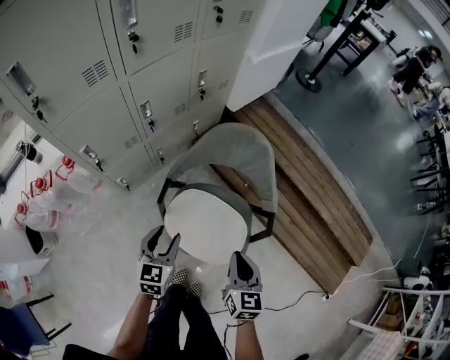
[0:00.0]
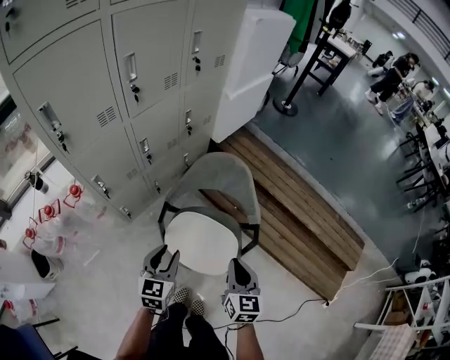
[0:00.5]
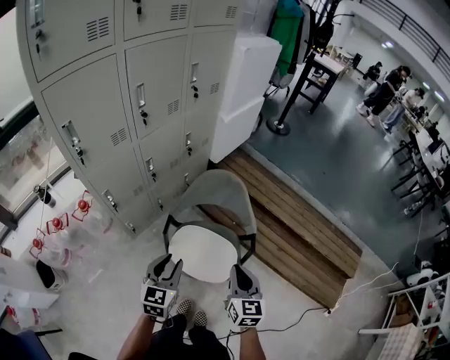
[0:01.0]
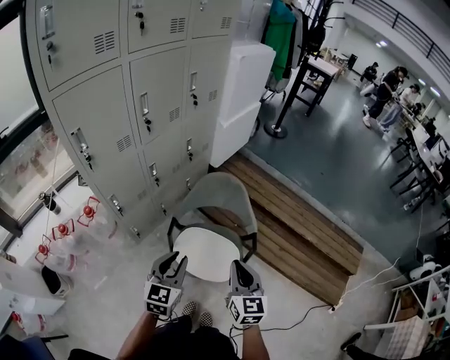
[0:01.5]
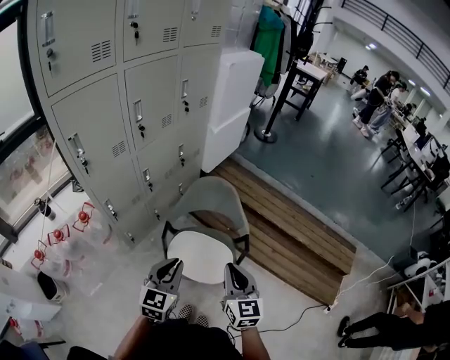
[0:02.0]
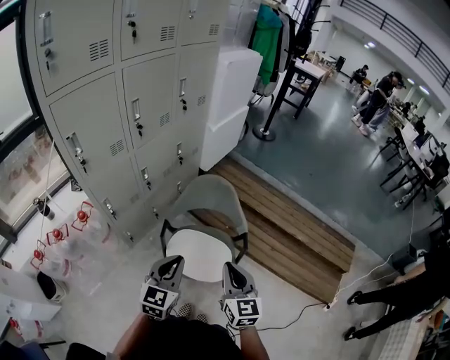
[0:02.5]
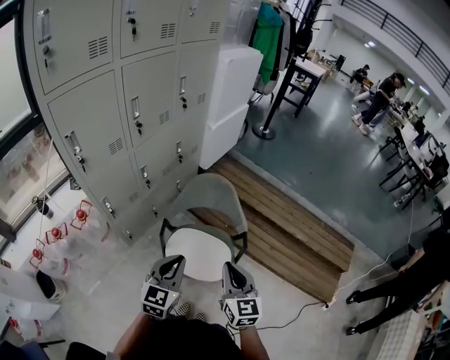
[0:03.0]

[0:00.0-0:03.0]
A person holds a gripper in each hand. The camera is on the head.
0:00.0 to 0:01.5: Both grippers travel together upward and backward, roughly 25 cm. The left gripper closes its fingers.
0:01.5 to 0:03.0: The grippers make only small movements.

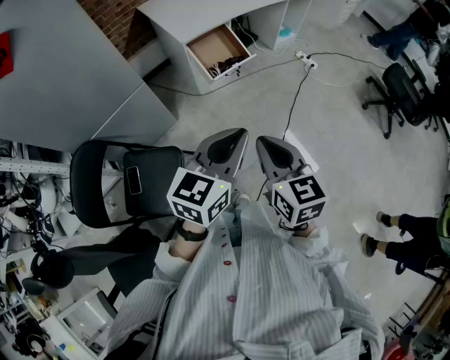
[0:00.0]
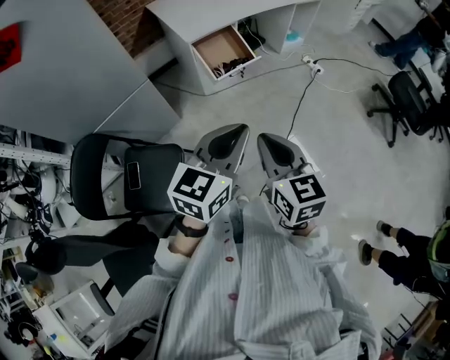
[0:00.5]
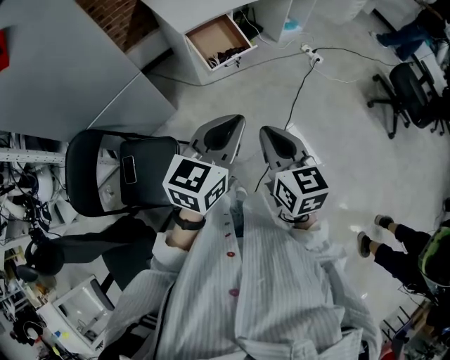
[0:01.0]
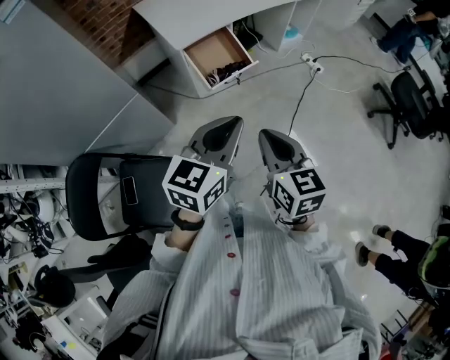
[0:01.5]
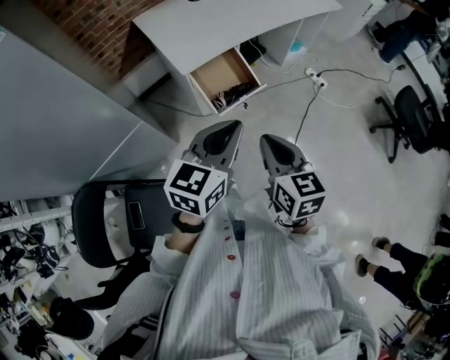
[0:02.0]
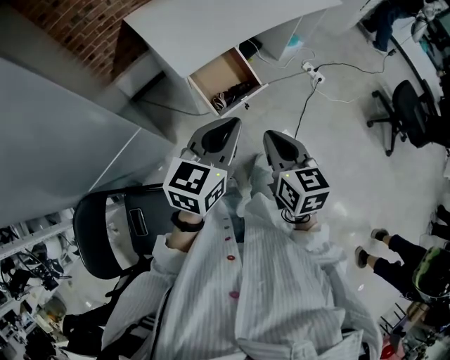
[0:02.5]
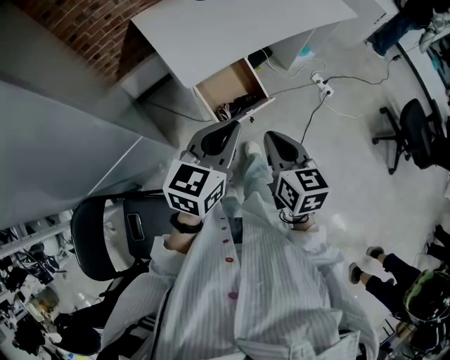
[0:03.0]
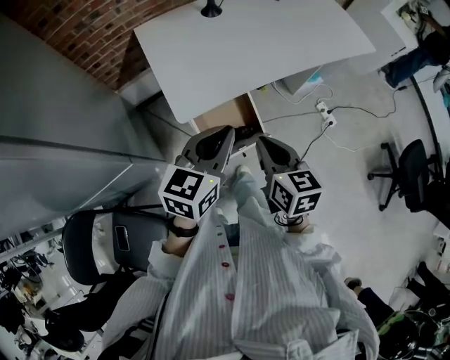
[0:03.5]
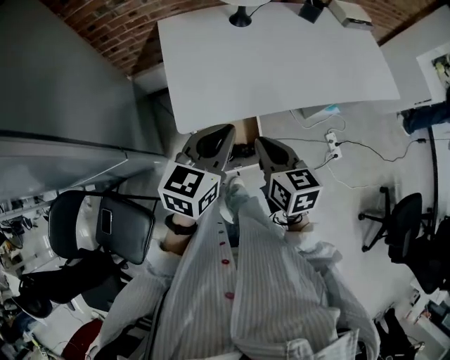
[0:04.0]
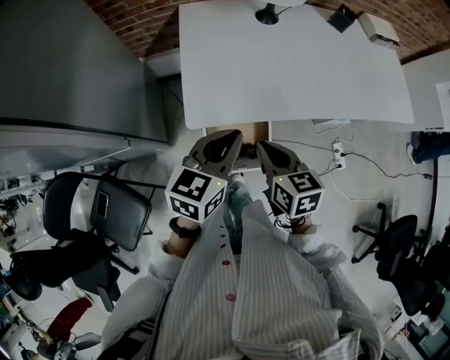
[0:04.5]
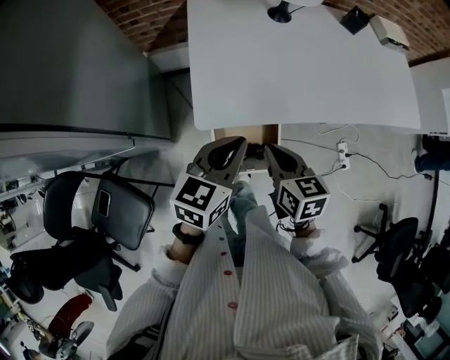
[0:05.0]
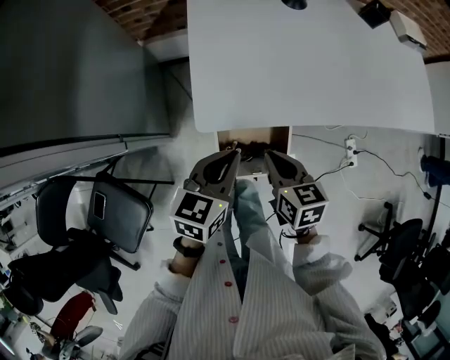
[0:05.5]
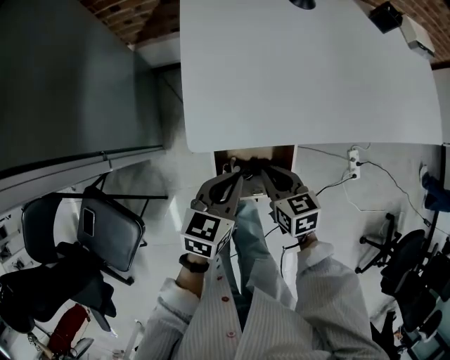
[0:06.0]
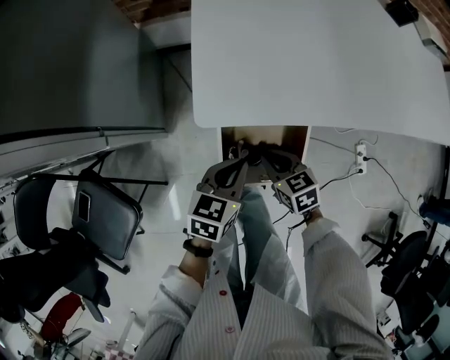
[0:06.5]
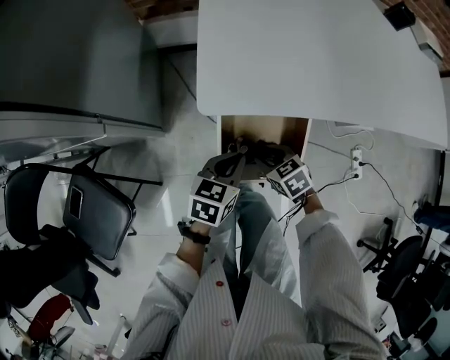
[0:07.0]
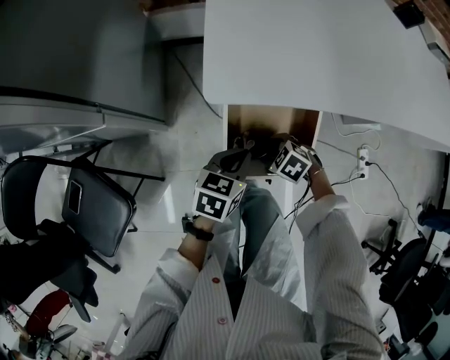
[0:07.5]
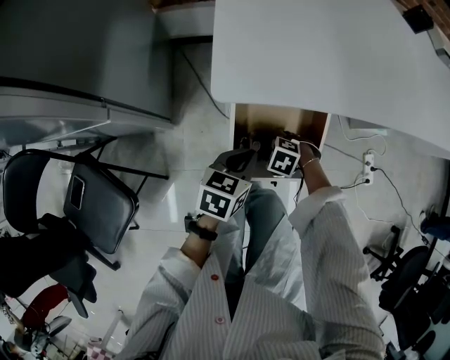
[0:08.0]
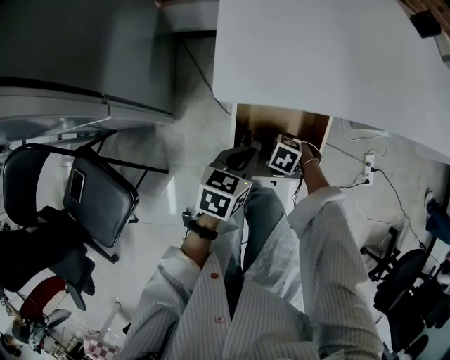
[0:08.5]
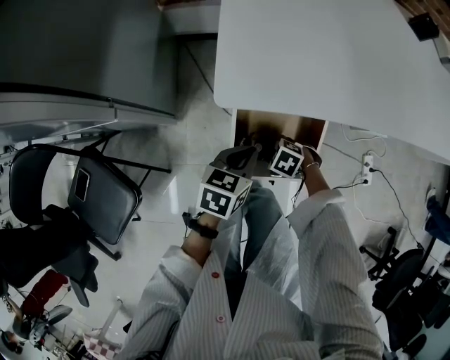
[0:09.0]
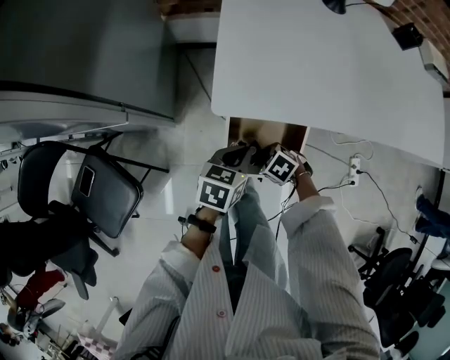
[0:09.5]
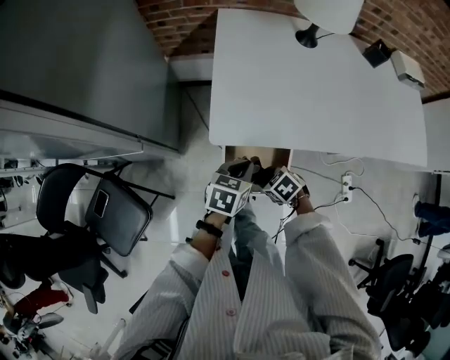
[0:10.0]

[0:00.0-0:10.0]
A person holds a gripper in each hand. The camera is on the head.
0:00.0 to 0:02.0: The grippers both shift forward by roughly 25 cm.
0:02.0 to 0:04.0: The right gripper shifts by approximately 40 cm, and changes its angle by about 20 degrees. The left gripper shifts by some 35 cm, and changes its angle by about 20 degrees.
0:04.0 to 0:06.0: Both grippers travel together downward, roughly 30 cm. The right gripper turns by about 20 degrees.
0:06.0 to 0:08.0: The left gripper travels downward by about 15 cm. Meanwhile the right gripper heads downward, covering about 25 cm, points its fingers about 30 degrees further downward, and opens.
0:08.0 to 0:10.0: The grippers both shift upward by some 20 cm. The right gripper rotates some 30 degrees, and closes up.

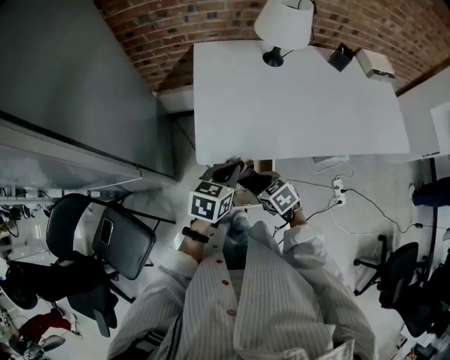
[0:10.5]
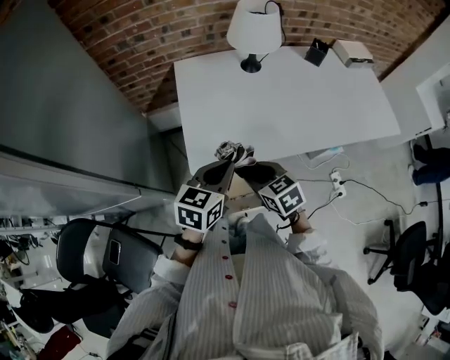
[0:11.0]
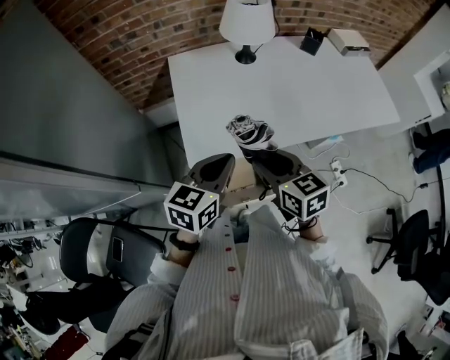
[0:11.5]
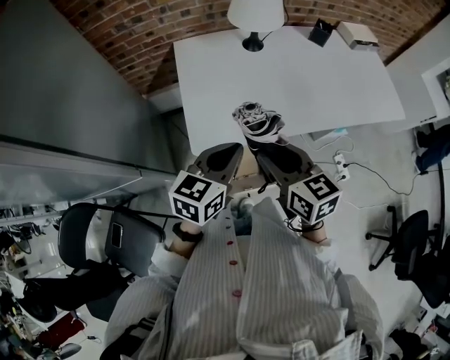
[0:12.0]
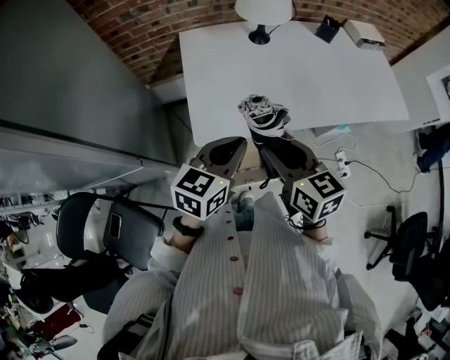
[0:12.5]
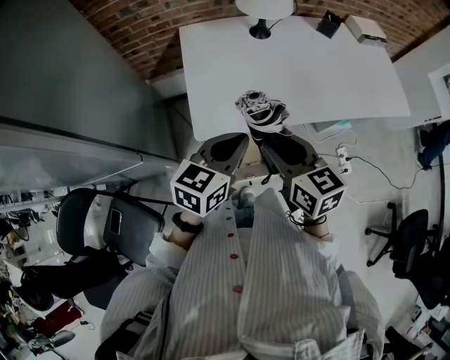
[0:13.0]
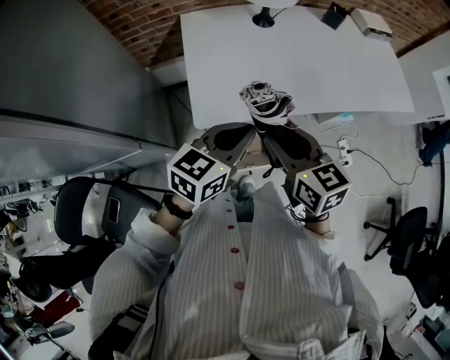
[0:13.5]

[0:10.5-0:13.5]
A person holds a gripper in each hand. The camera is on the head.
0:10.5 to 0:12.0: The right gripper shifts about 25 cm upward, and angles its fingers upward, by some 30 degrees. The left gripper moves upward, roughly 15 cm.
0:12.0 to 0:13.5: There are only small adjustments of the grippers.

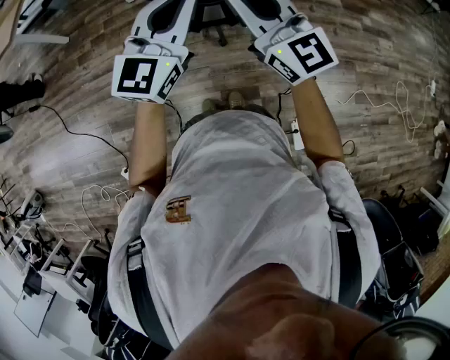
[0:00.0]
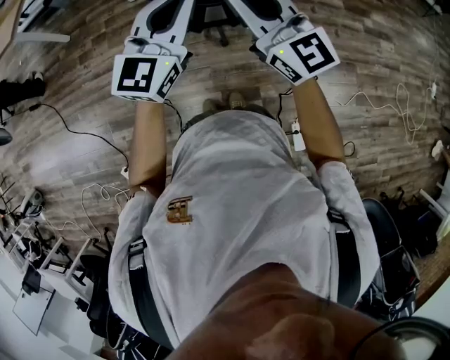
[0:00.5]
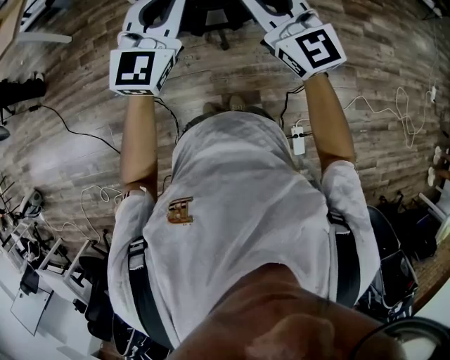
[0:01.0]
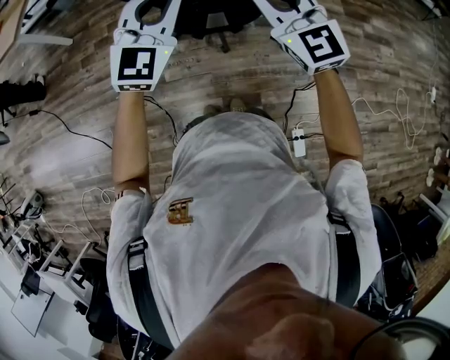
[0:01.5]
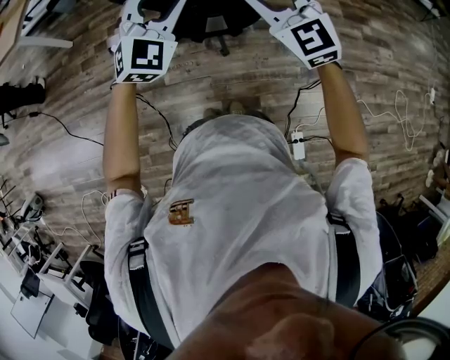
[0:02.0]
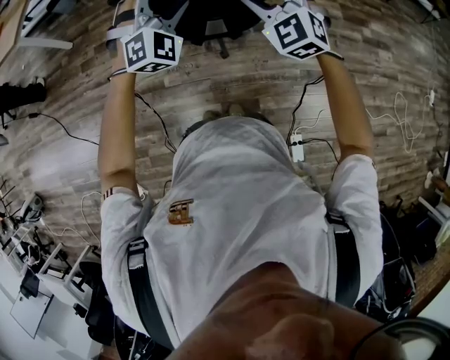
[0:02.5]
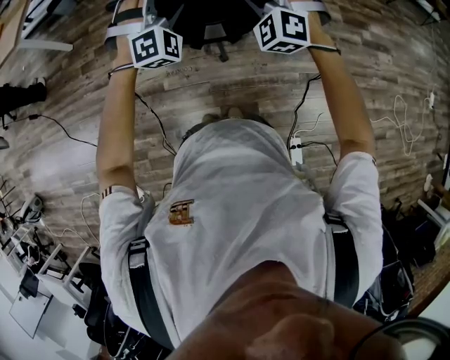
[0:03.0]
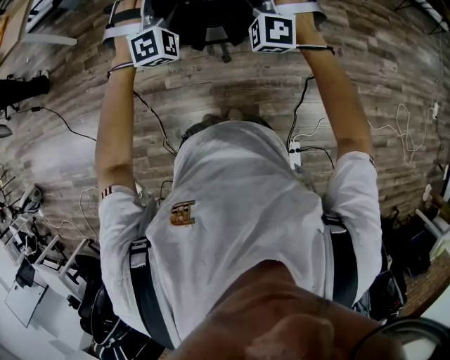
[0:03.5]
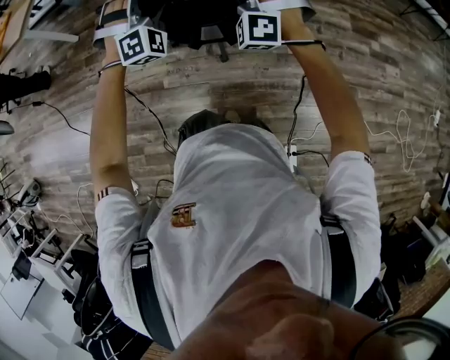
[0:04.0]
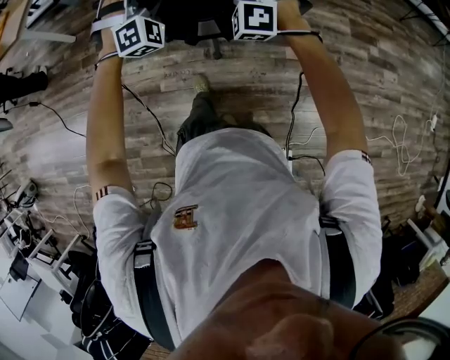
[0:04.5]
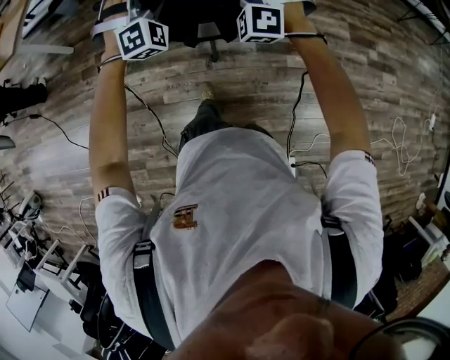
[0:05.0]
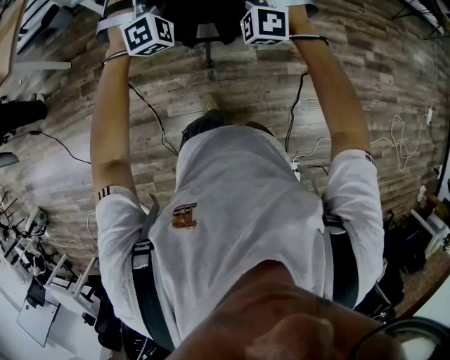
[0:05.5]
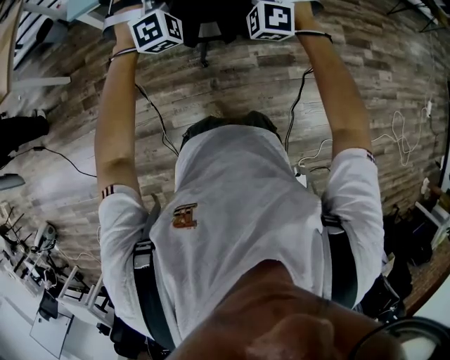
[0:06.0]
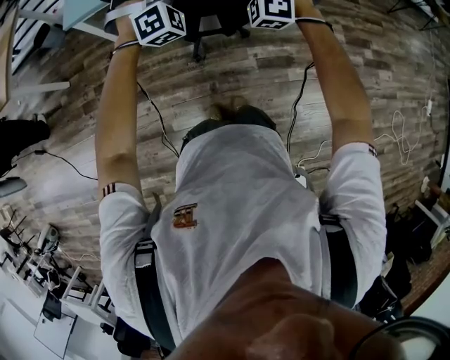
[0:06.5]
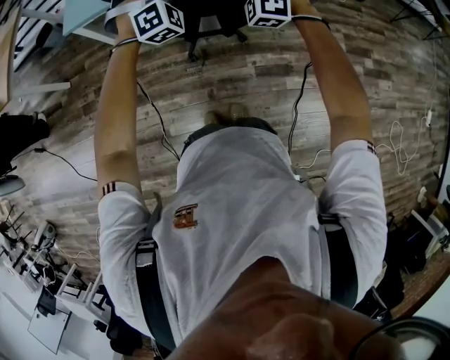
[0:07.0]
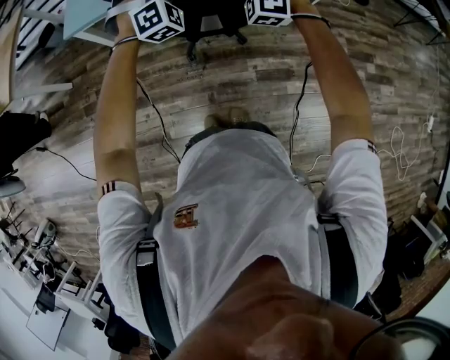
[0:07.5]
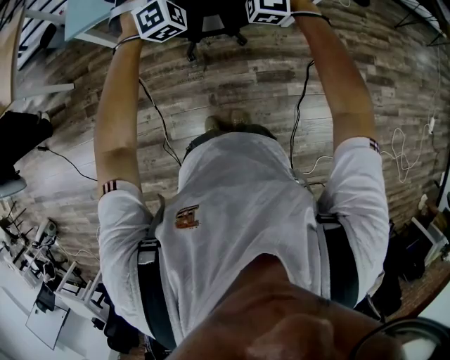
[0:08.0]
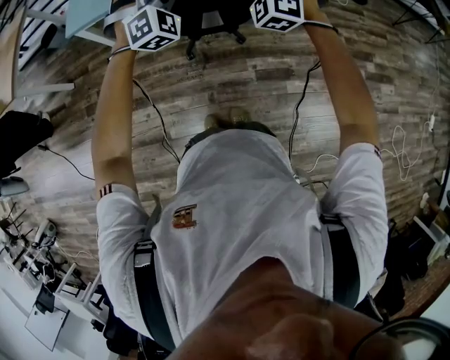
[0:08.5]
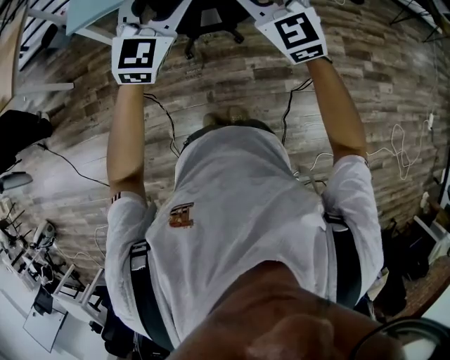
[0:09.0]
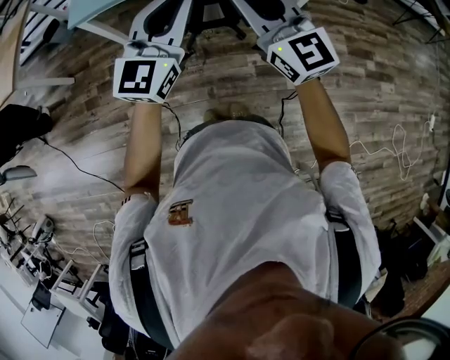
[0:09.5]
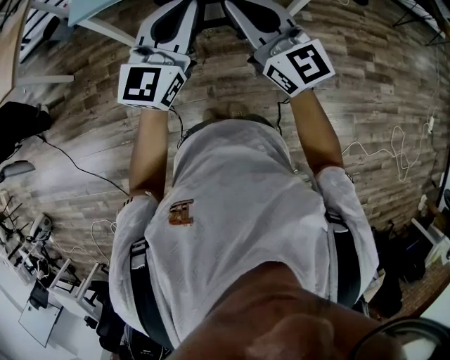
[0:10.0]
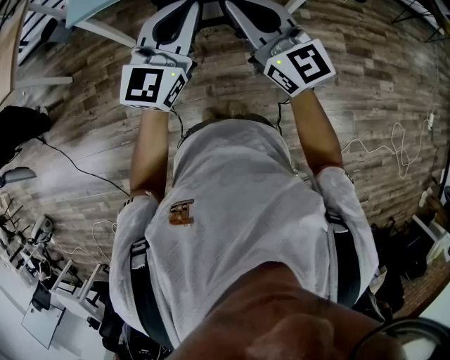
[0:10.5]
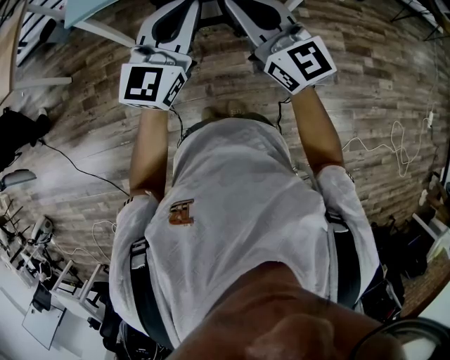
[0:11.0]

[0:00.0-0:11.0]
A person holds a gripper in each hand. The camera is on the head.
0:00.0 to 0:02.0: Both grippers travel together forward, some 10 cm. The left gripper swivels about 40 degrees, and opens its fingers. The right gripper turns by roughly 30 degrees, and opens.
0:02.0 to 0:03.5: The two grippers go about 15 cm forward and downward. The right gripper twists some 50 degrees counterclockwise, seen from behind, and opens its fingers. The left gripper turns by about 40 degrees, and opens.
0:03.5 to 0:05.5: The two grippers go approximately 30 cm forward.
0:05.5 to 0:07.5: The grippers both shift forward by approximately 25 cm.
0:07.5 to 0:09.0: Both grippers travel together backward and upward, approximately 20 cm. The right gripper rotates around the line of its fingers by about 50 degrees, clockwise from behind. The left gripper rotates around the line of its fingers by about 50 degrees, counterclockwise from behind.
0:09.0 to 0:11.0: The two grippers go approximately 10 cm backward. The right gripper changes its angle by about 30 degrees, and closes its fingers; the left gripper turns by about 20 degrees, and closes its fingers.
